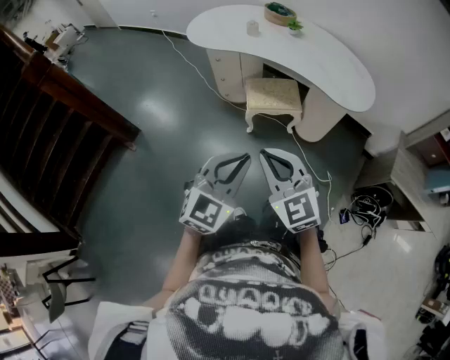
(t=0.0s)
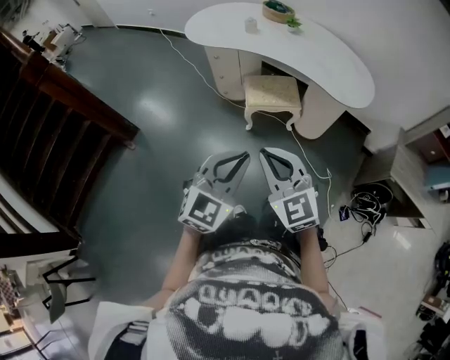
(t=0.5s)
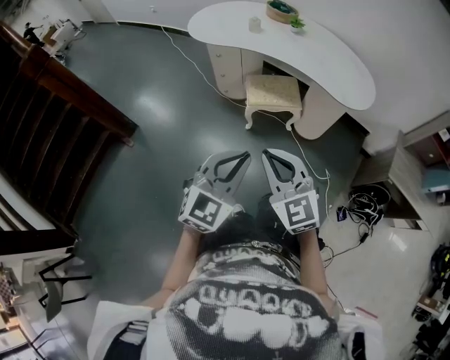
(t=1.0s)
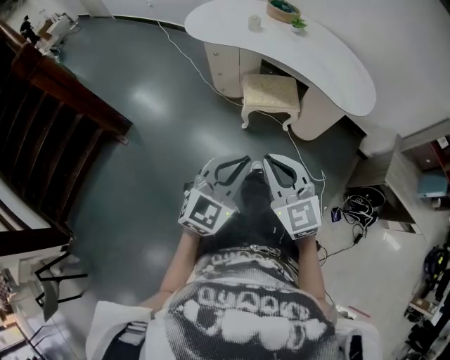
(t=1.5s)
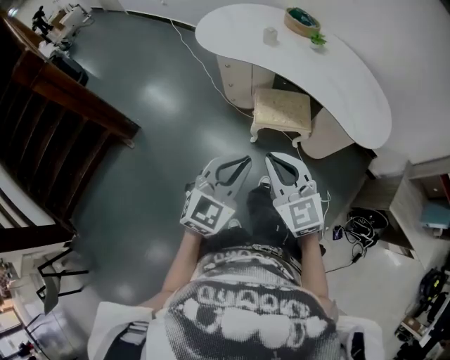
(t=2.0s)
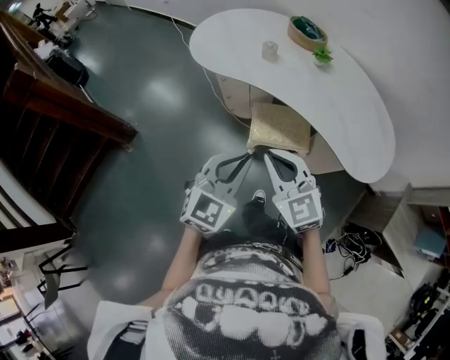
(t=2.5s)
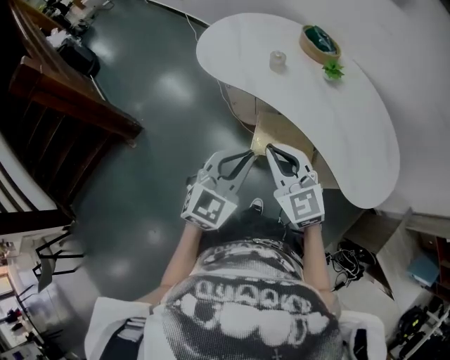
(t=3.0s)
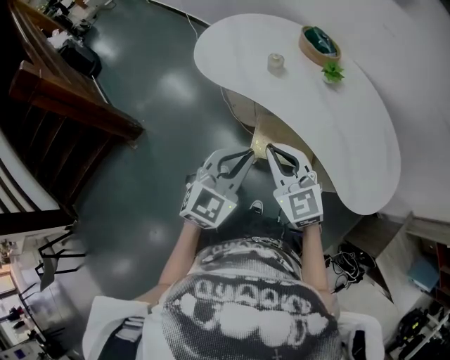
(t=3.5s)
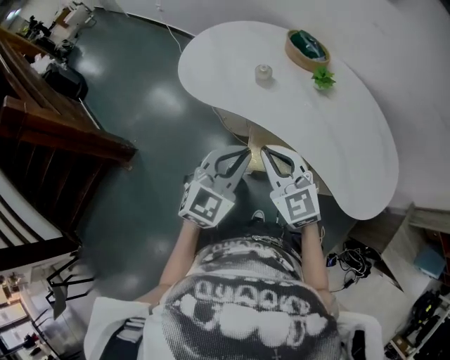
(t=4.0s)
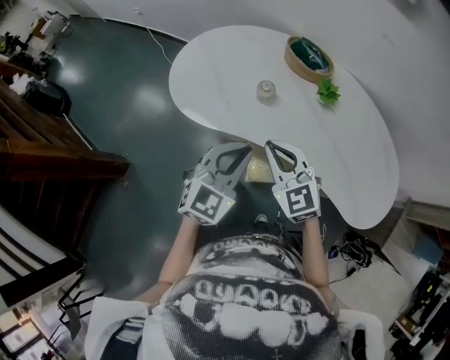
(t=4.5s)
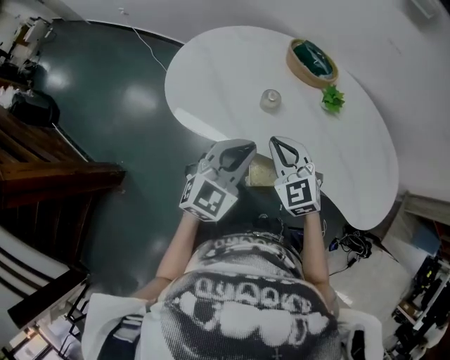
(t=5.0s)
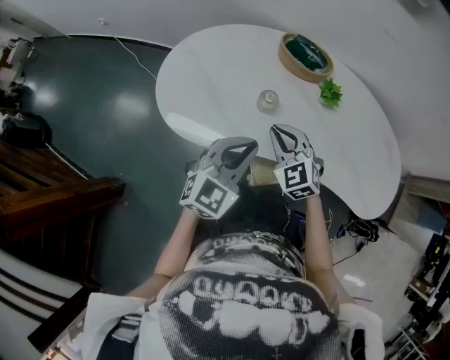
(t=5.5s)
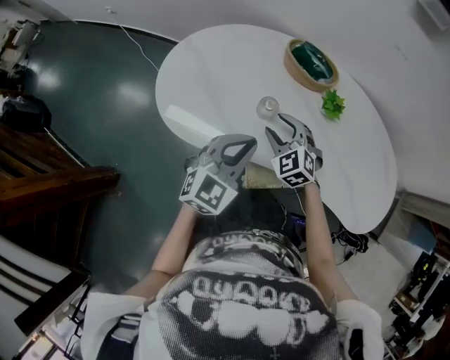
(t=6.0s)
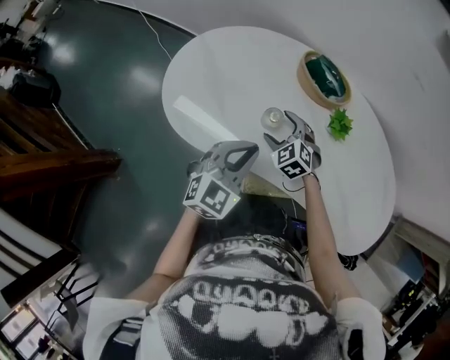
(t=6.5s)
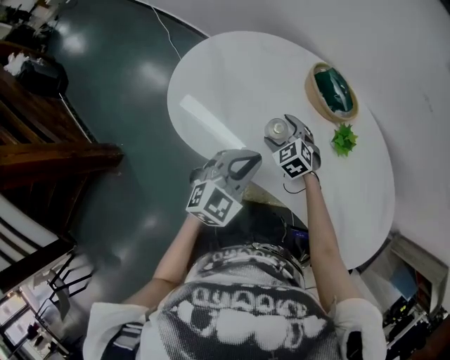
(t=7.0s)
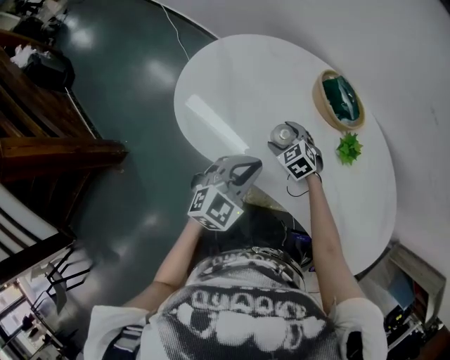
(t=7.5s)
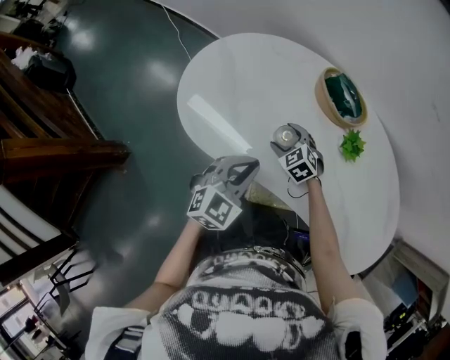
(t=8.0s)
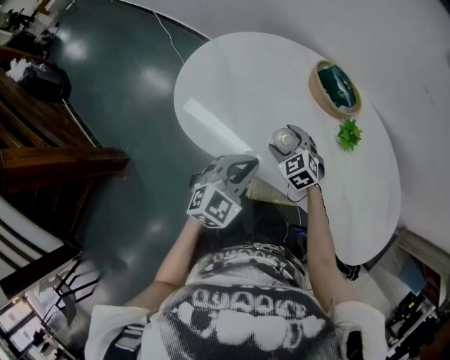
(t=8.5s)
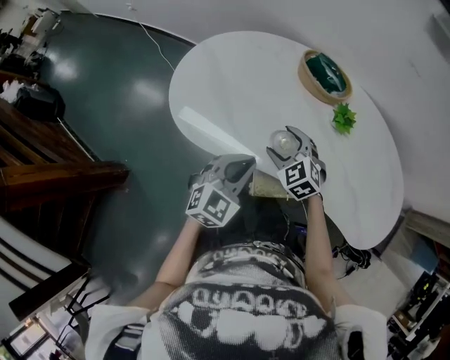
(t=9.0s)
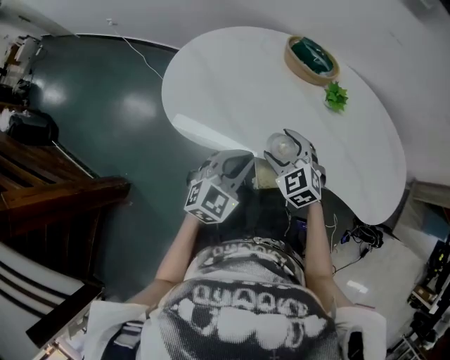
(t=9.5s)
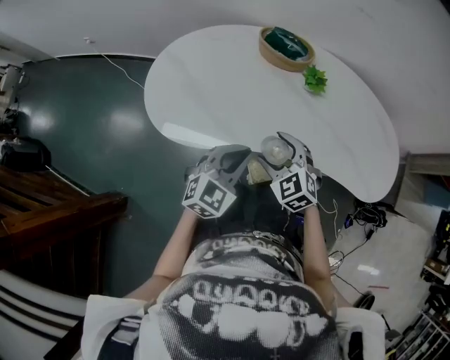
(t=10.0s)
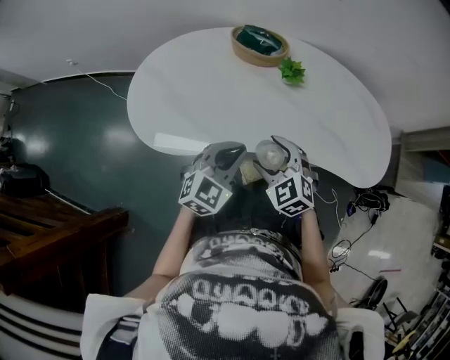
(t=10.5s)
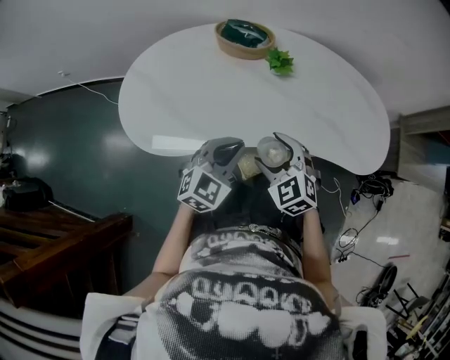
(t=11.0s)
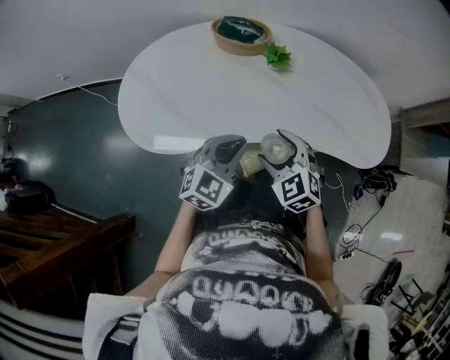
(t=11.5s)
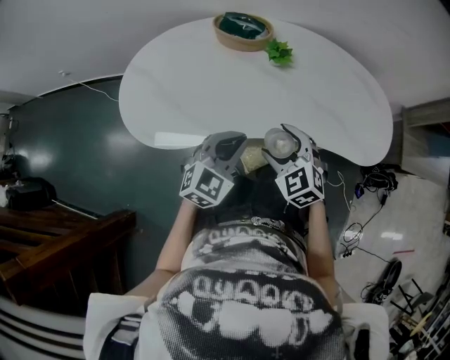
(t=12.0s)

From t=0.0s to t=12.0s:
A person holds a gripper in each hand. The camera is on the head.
From t=0.0s to t=2.0s: The two grippers go approximately 15 cm forward.
From t=2.0s to t=4.0s: The two grippers go about 35 cm forward.
From t=4.0s to t=6.0s: The left gripper heads forward, covering some 25 cm. The right gripper moves forward and downward, roughly 35 cm, swivels about 30 degrees, and opens up.
From t=6.0s to t=8.0s: The left gripper changes place by about 5 cm. Meanwhile the right gripper moves downward and forward, some 10 cm.
From t=8.0s to t=10.0s: The right gripper goes roughly 20 cm backward and upward, and swivels approximately 20 degrees; the left gripper goes approximately 10 cm backward, and swivels roughly 20 degrees.
From t=10.0s to t=12.0s: The grippers both shift to the right by roughly 10 cm.

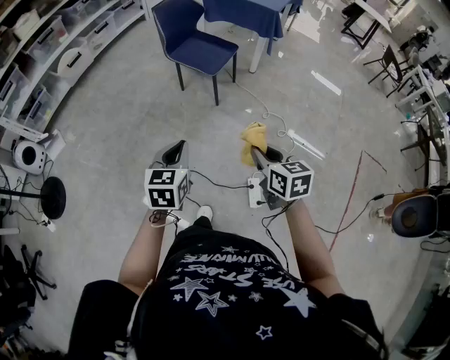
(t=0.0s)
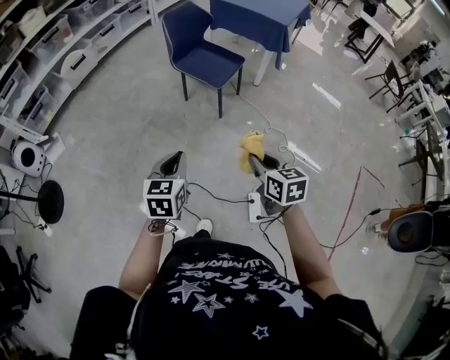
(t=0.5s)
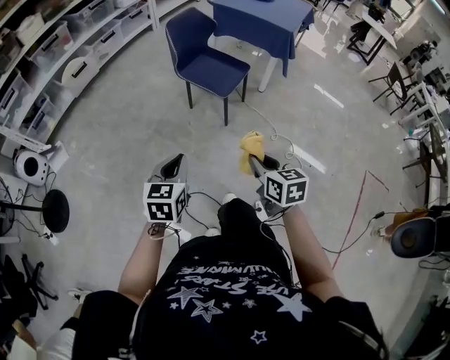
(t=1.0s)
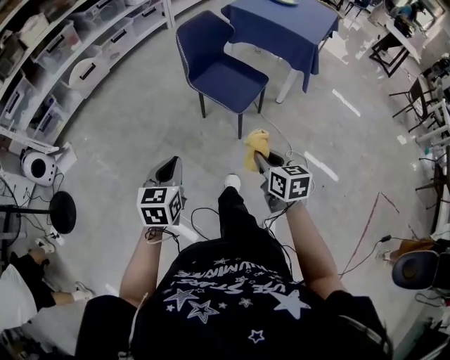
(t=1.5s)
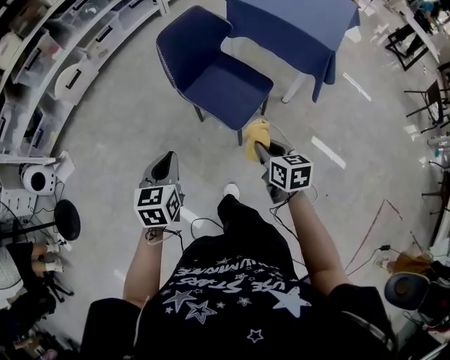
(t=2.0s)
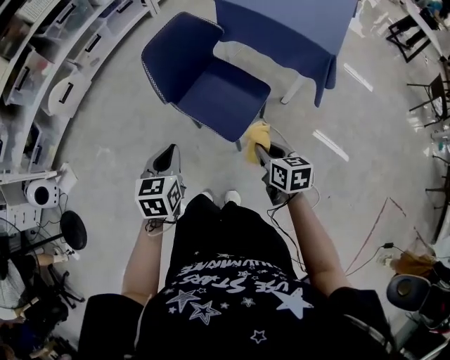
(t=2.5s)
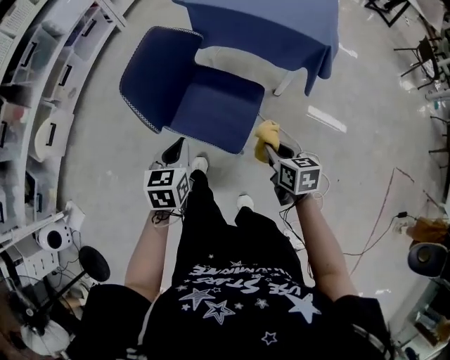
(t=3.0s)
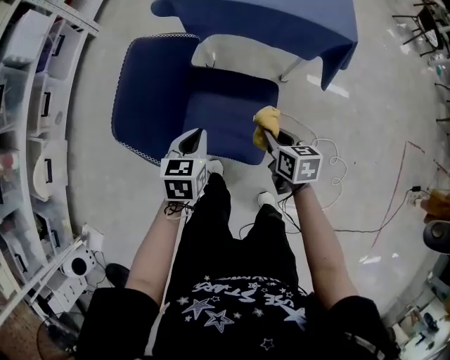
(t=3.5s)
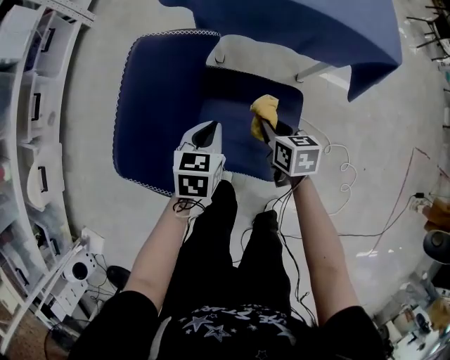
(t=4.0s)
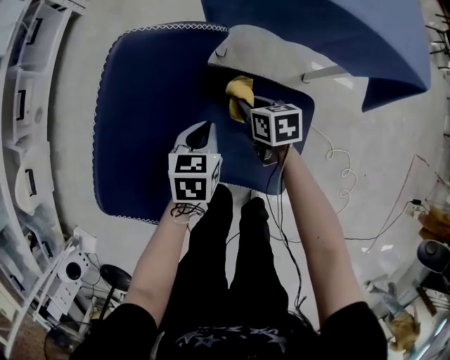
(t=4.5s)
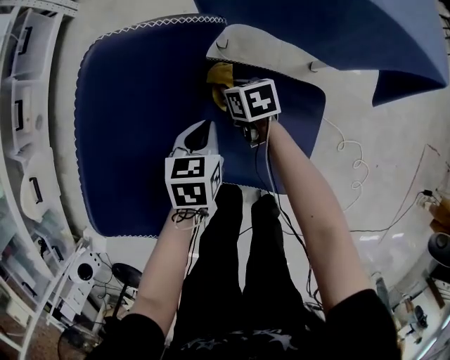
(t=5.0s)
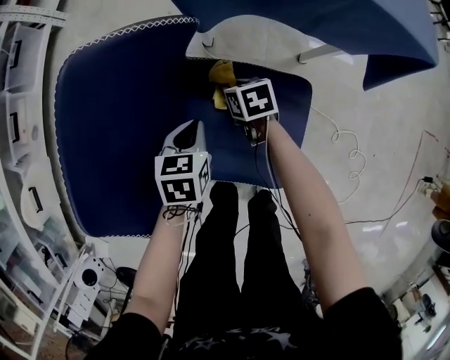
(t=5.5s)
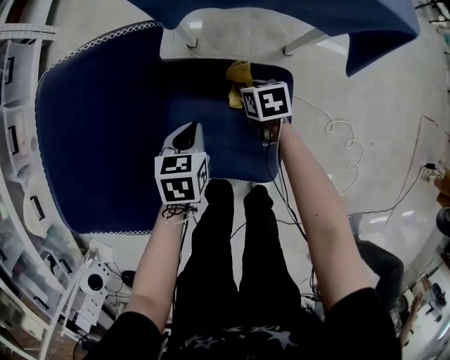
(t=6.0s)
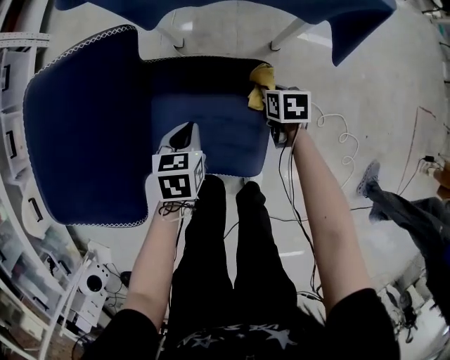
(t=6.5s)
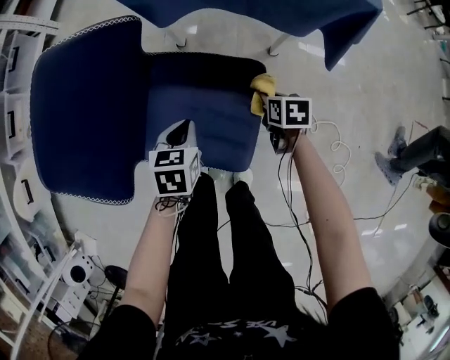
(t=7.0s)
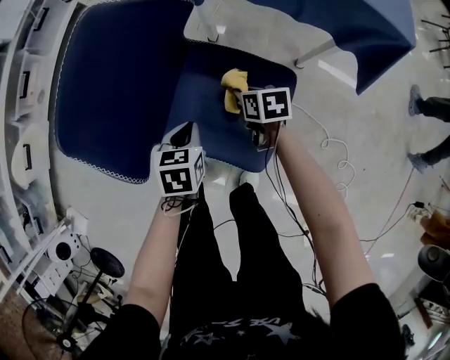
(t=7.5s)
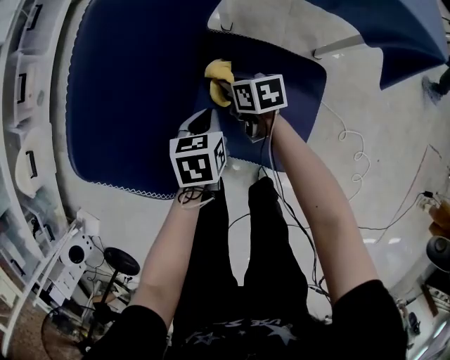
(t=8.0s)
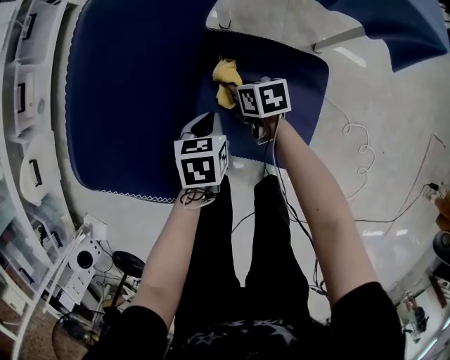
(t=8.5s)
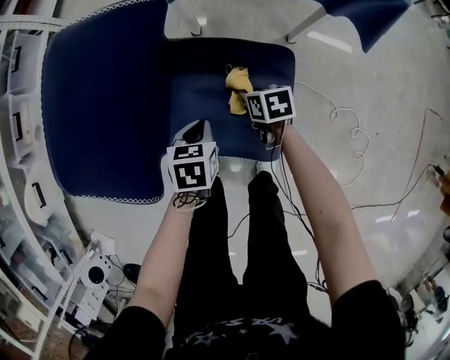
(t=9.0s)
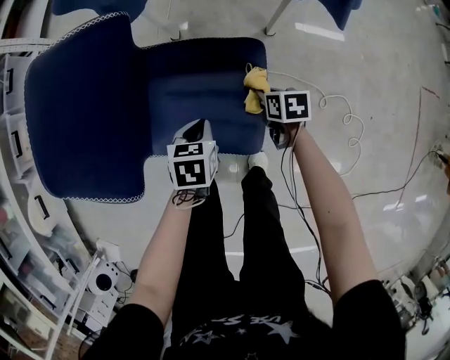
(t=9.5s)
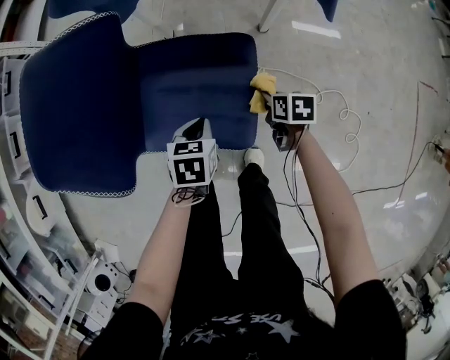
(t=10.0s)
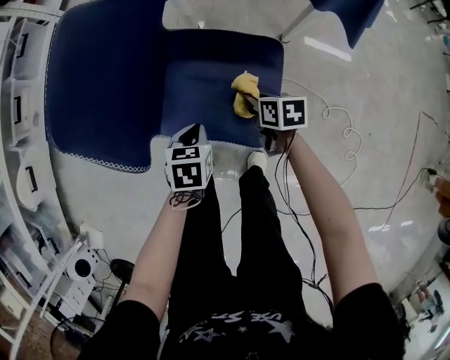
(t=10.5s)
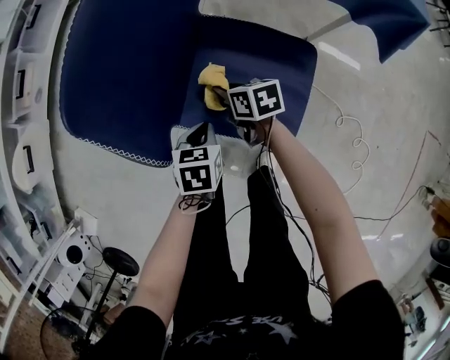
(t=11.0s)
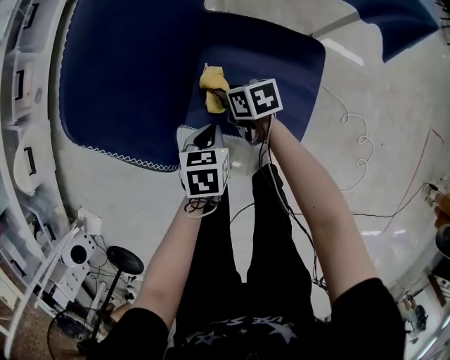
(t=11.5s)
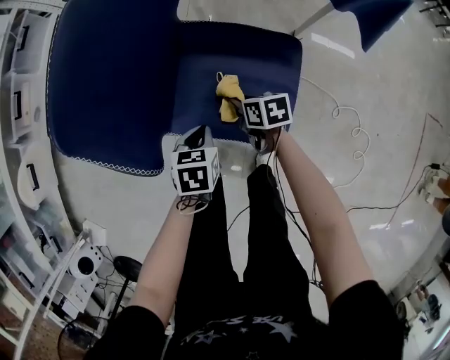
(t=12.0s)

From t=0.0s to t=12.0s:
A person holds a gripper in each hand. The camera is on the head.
From t=0.0s to t=2.0s: Both grippers are carried forward, about 50 cm.
From t=2.0s to t=4.0s: The right gripper changes place by approximately 50 cm, and changes its angle by approximately 30 degrees; the left gripper shifts by about 50 cm, and swivels approximately 40 degrees.
From t=4.0s to t=6.0s: The left gripper heads downward, covering some 10 cm. The right gripper is displaced downward and forward by roughly 20 cm.
From t=6.0s to t=8.0s: The right gripper moves some 20 cm, and rotates approximately 20 degrees. The left gripper moves approximately 5 cm.
From t=8.0s to t=10.0s: The left gripper is displaced to the right and backward by approximately 15 cm, and swivels about 20 degrees. The right gripper shifts some 35 cm to the right and backward, and swivels about 30 degrees.
From t=10.0s to t=12.0s: The left gripper moves to the left, roughly 10 cm. The right gripper travels to the left by some 20 cm, and rotates approximately 20 degrees.

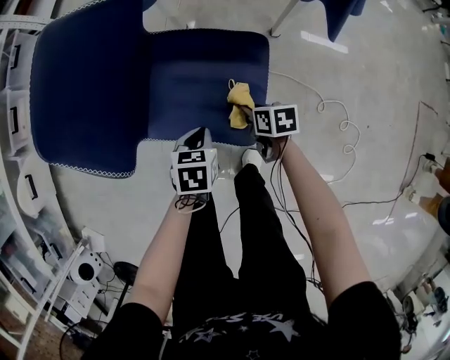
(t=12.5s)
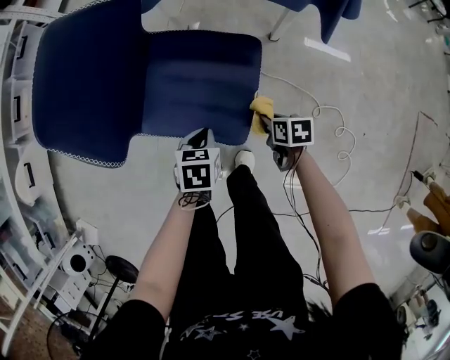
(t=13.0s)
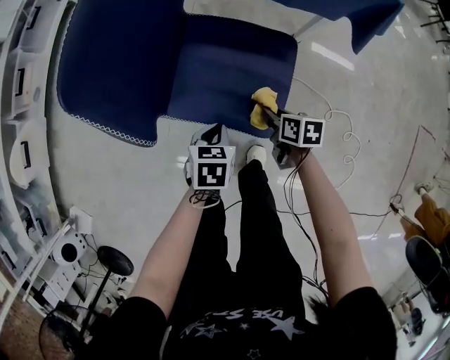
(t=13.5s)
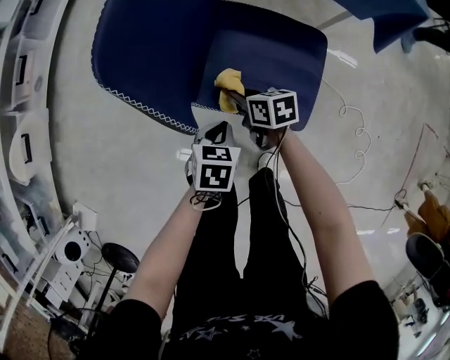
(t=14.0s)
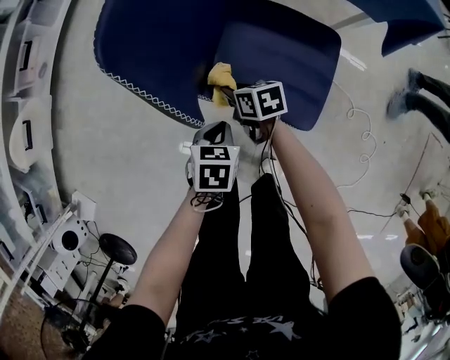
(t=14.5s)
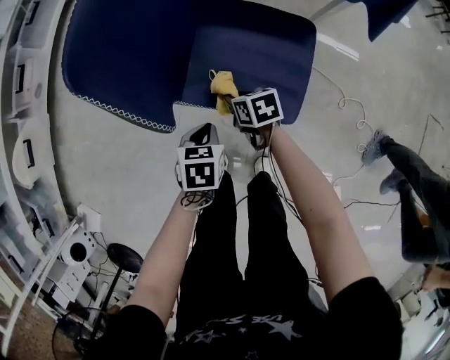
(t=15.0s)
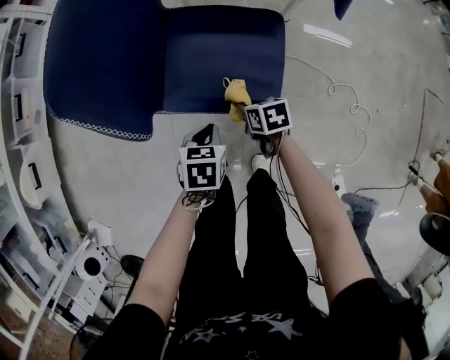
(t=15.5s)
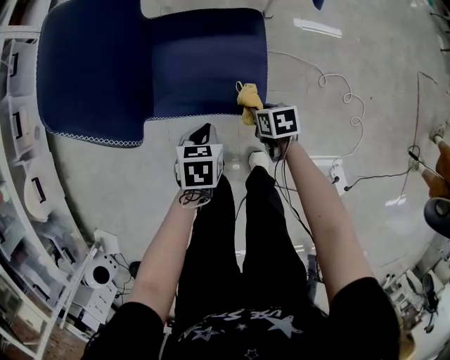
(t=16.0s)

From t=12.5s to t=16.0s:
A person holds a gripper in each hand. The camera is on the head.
From t=12.5s to t=14.5s: The right gripper travels to the left by some 25 cm. The left gripper travels to the left by approximately 15 cm.
From t=14.5s to t=16.0s: The left gripper moves to the right, approximately 10 cm; the right gripper goes roughly 25 cm to the right and backward, and swivels some 30 degrees.
